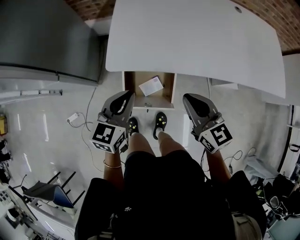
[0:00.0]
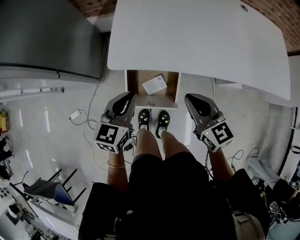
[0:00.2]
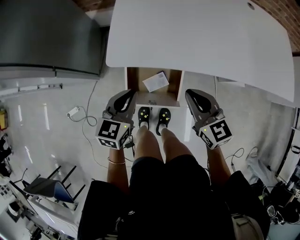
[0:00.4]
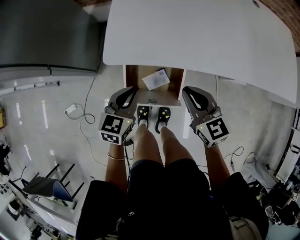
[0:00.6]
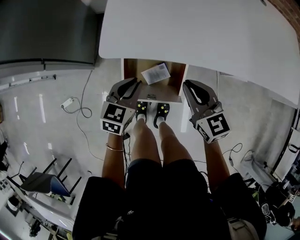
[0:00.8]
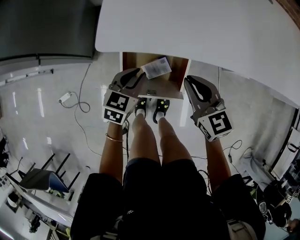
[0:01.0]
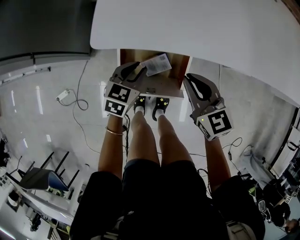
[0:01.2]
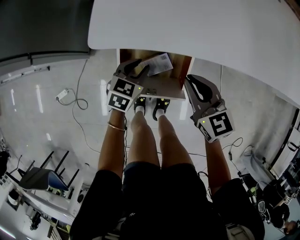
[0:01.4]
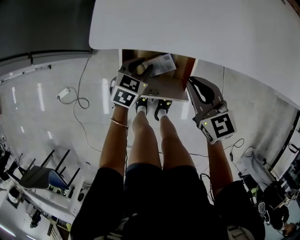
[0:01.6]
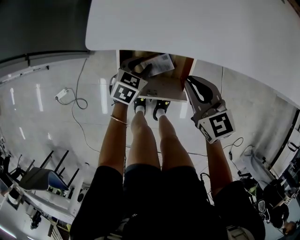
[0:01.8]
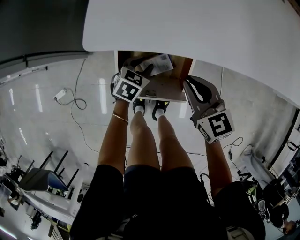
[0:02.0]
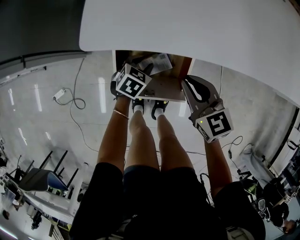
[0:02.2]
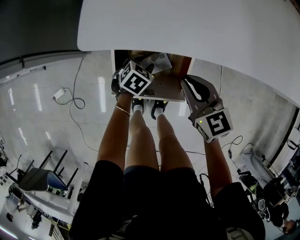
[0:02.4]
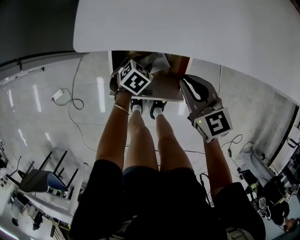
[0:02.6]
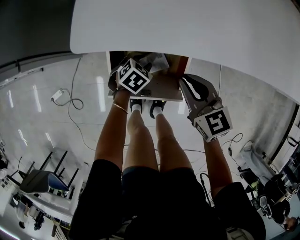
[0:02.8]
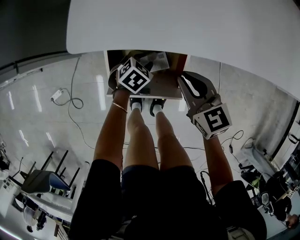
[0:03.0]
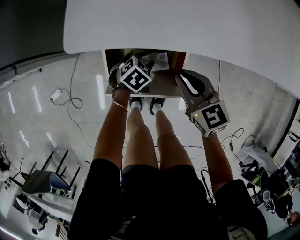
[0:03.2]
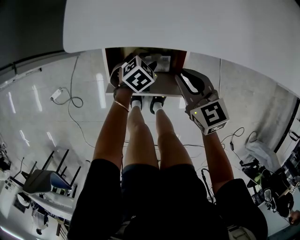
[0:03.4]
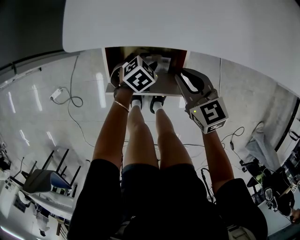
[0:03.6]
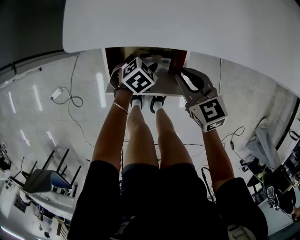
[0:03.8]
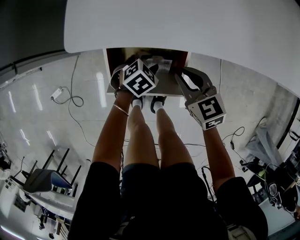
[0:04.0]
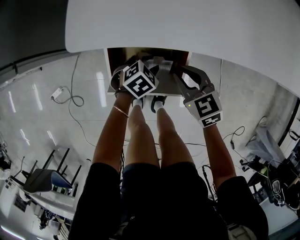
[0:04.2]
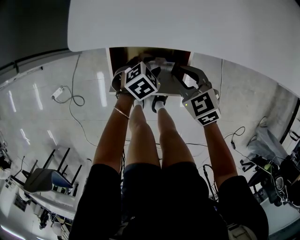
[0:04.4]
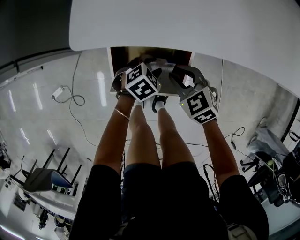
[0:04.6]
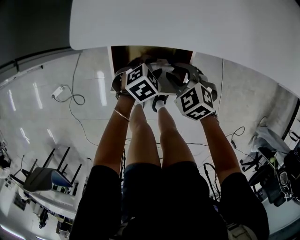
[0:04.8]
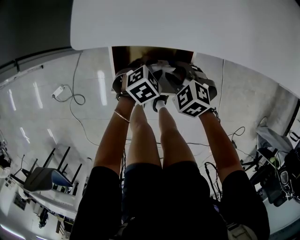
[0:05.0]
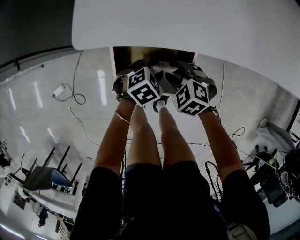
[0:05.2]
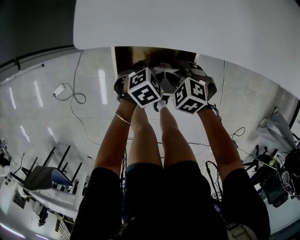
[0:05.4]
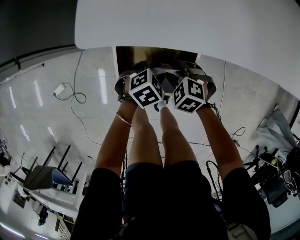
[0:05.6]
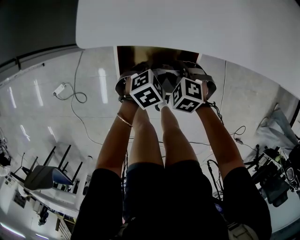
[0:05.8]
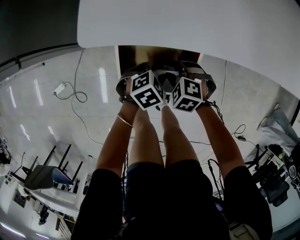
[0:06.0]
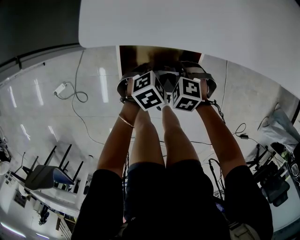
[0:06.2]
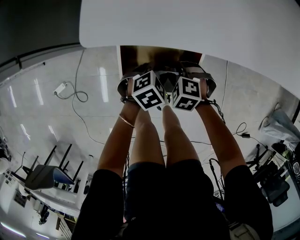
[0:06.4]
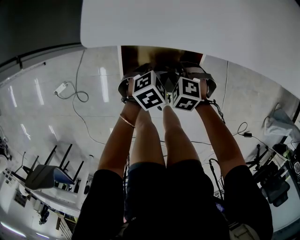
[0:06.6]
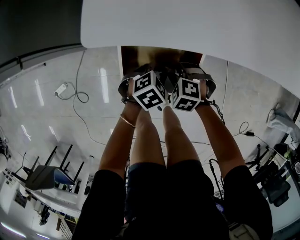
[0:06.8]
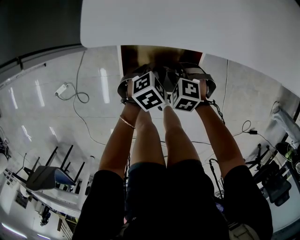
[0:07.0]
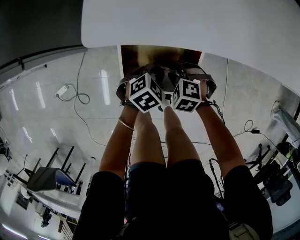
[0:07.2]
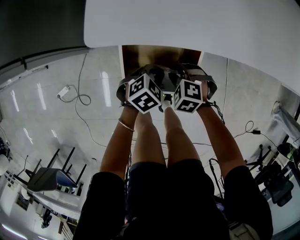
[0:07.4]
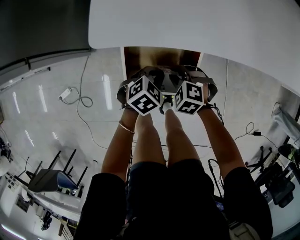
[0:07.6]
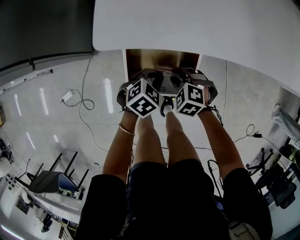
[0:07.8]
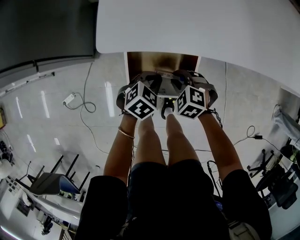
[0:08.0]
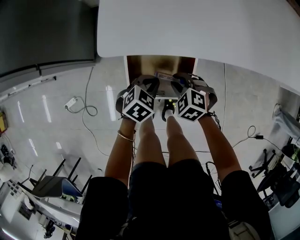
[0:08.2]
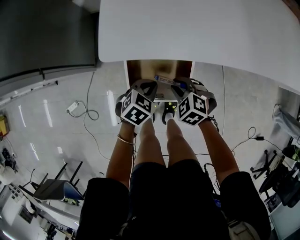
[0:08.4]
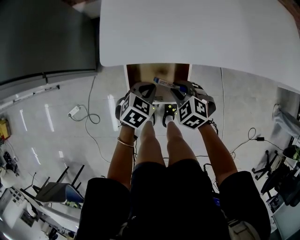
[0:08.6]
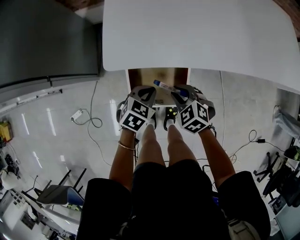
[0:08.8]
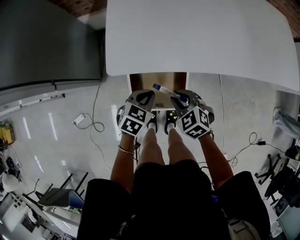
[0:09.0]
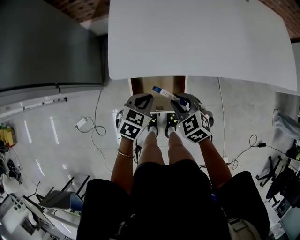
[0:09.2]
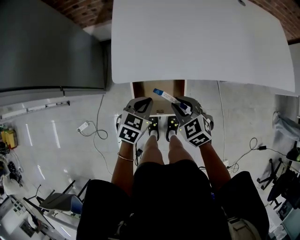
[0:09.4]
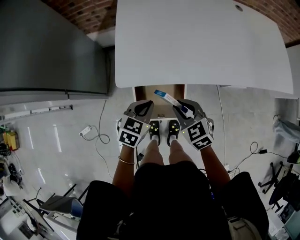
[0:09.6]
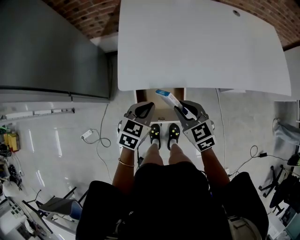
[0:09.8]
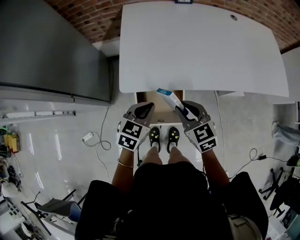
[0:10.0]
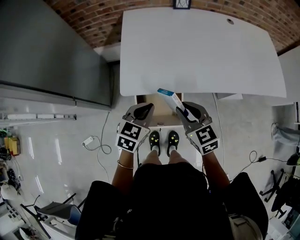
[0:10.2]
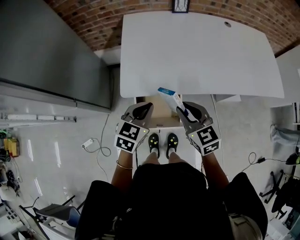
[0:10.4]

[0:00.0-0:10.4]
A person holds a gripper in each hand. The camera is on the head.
0:00.0 to 0:01.4: The left gripper shifts some 30 cm downward, swivels some 20 degrees, and opens its fingers. Meanwhile the right gripper shifts approximately 20 cm downward.
0:01.4 to 0:03.0: The left gripper moves downward and to the right, some 10 cm, and turns by some 30 degrees.
0:03.0 to 0:04.4: The right gripper is displaced downward by some 5 cm, and swivels about 20 degrees.
0:04.4 to 0:06.0: The right gripper heads downward, covering roughly 10 cm, and rotates about 40 degrees.
0:06.0 to 0:07.4: The left gripper closes its fingers.
0:07.4 to 0:09.0: Both grippers travel together upward, approximately 15 cm. The right gripper rotates roughly 30 degrees.
0:09.0 to 0:10.4: Both grippers travel together upward, about 20 cm. The right gripper swivels about 30 degrees.

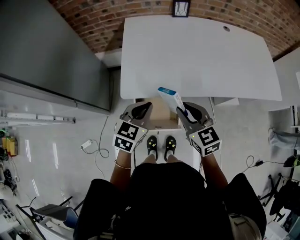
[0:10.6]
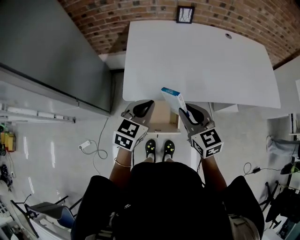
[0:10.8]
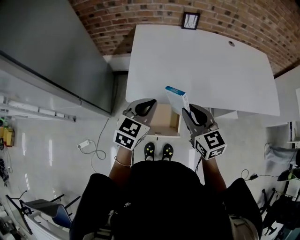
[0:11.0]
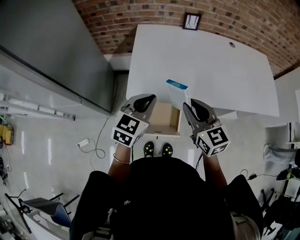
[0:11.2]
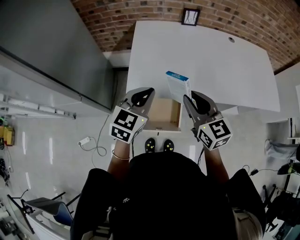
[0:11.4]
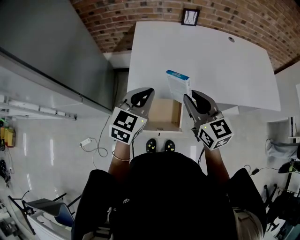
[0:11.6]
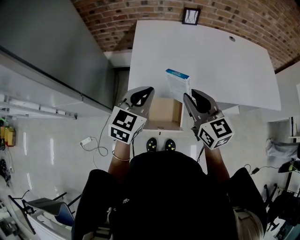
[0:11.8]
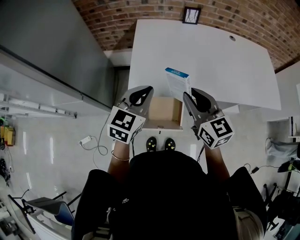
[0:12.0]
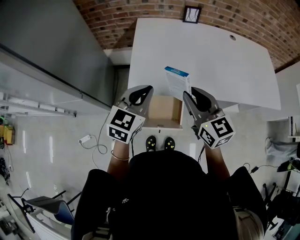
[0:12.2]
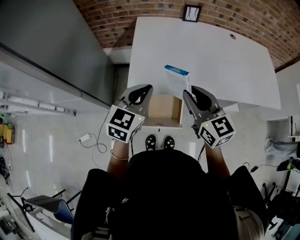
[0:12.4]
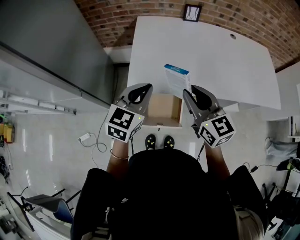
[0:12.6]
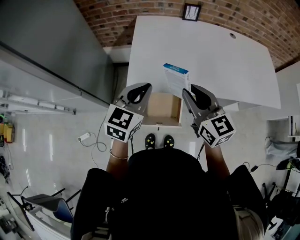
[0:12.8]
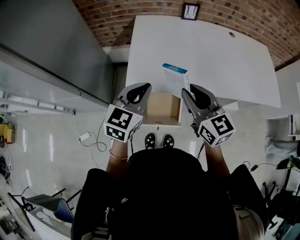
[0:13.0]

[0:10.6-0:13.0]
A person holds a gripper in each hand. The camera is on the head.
0:10.6 to 0:11.8: The grippers both shift upward by about 10 cm.
0:11.8 to 0:13.0: The grippers move only a little.

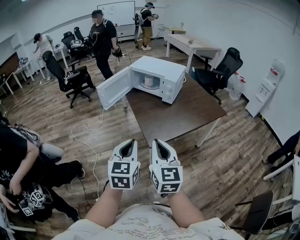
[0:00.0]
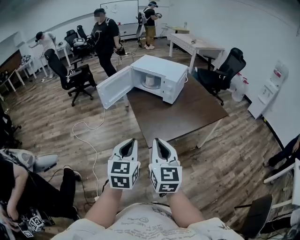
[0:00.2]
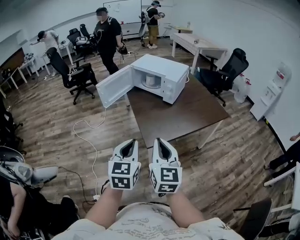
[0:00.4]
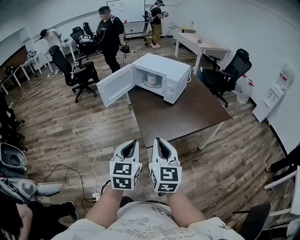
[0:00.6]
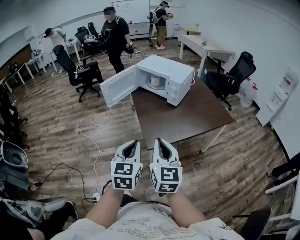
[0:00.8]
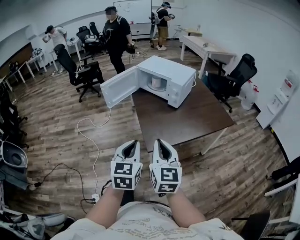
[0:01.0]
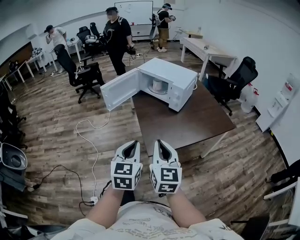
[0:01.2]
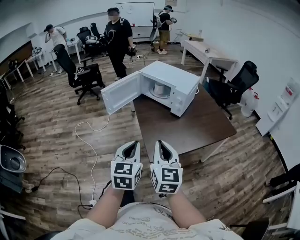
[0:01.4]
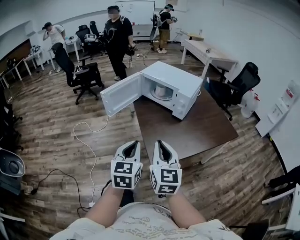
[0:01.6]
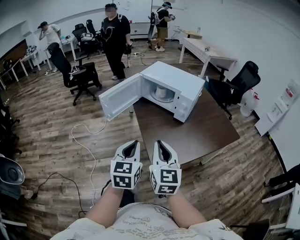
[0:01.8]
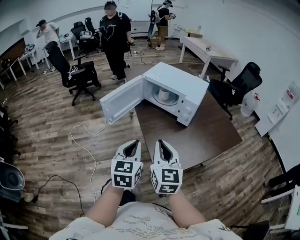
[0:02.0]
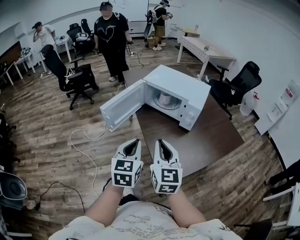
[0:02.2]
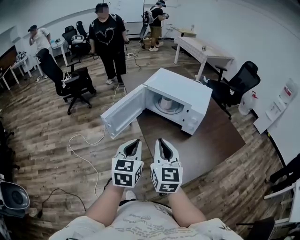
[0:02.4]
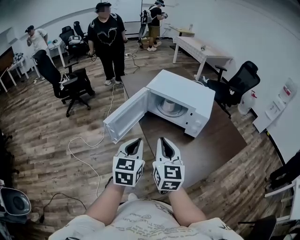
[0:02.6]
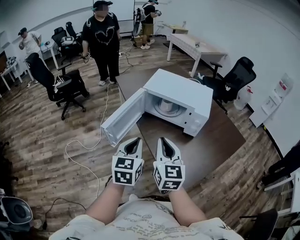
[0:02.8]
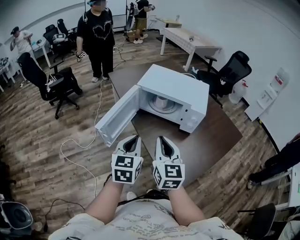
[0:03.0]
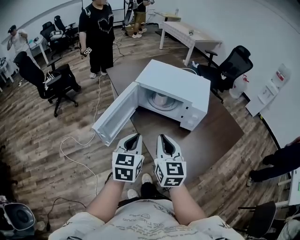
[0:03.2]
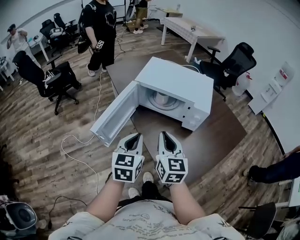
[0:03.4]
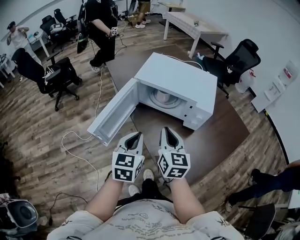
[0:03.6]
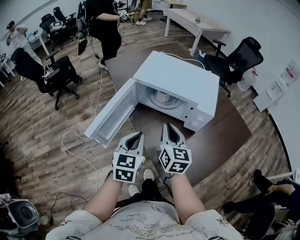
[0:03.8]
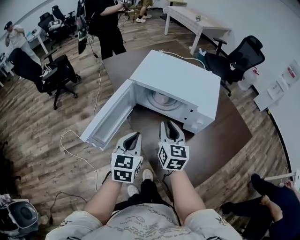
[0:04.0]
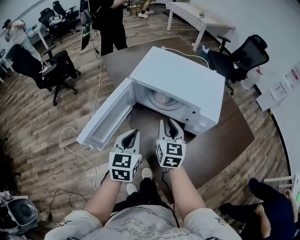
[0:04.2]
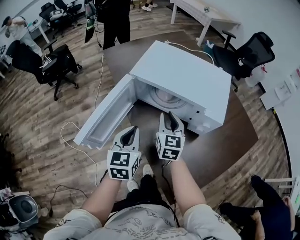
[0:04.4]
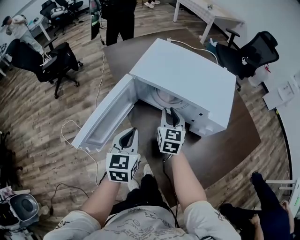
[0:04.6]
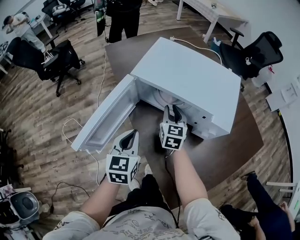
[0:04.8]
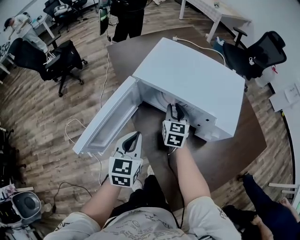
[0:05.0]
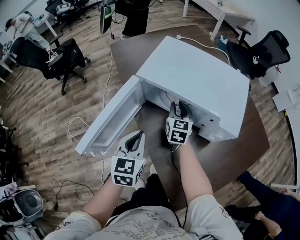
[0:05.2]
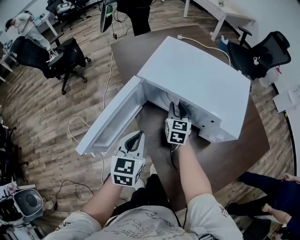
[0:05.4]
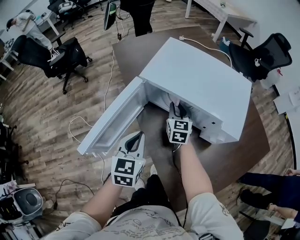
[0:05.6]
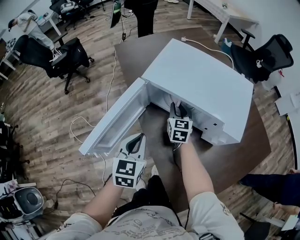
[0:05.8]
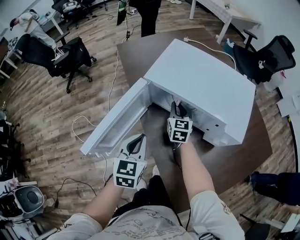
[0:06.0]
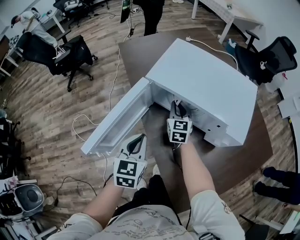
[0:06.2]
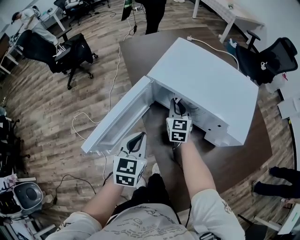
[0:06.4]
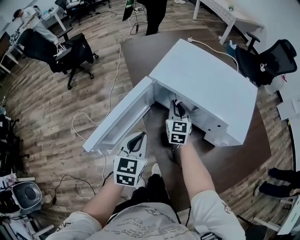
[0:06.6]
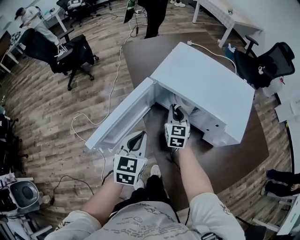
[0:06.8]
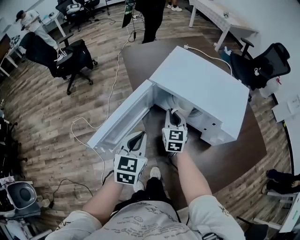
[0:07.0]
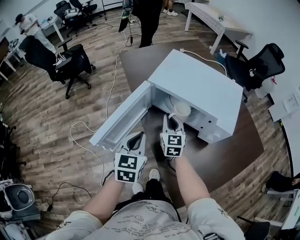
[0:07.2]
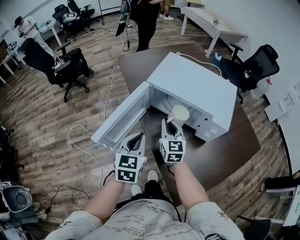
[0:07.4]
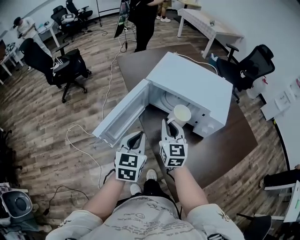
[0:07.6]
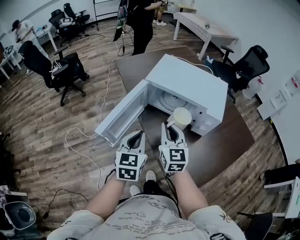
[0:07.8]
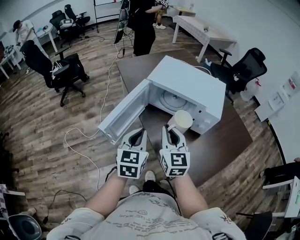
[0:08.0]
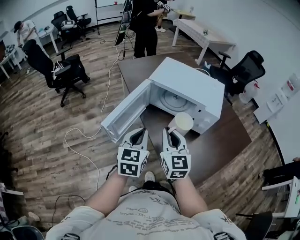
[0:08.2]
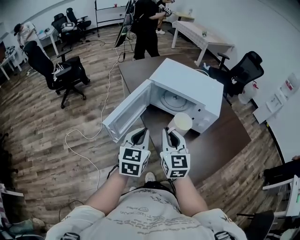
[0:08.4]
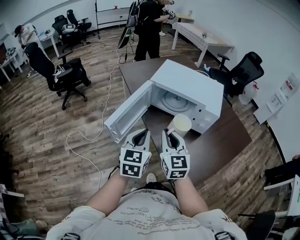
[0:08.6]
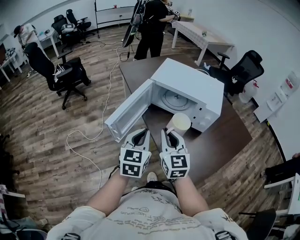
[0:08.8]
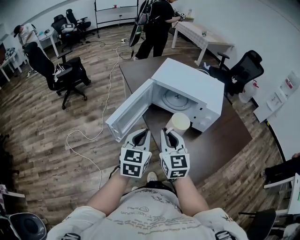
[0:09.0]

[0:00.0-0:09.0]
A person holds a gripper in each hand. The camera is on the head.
0:00.0 to 0:01.6: Both grippers move forward, roughly 15 cm.
0:01.6 to 0:03.0: Both grippers move forward and to the left, about 30 cm.
0:03.0 to 0:04.4: The right gripper travels forward and downward by roughly 30 cm, while the left gripper goes approximately 20 cm forward and downward.
0:04.4 to 0:06.0: The right gripper goes about 15 cm forward and downward.
0:06.0 to 0:07.6: The left gripper is displaced backward and upward by roughly 10 cm; the right gripper travels backward and upward by roughly 25 cm.
0:07.6 to 0:09.0: The right gripper is displaced backward by approximately 15 cm. Meanwhile the left gripper goes about 5 cm backward.

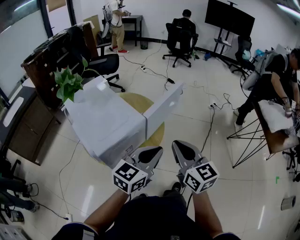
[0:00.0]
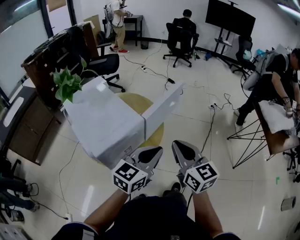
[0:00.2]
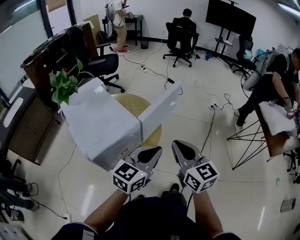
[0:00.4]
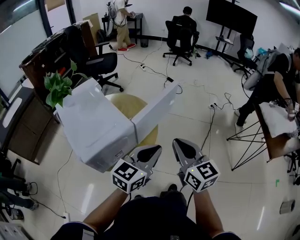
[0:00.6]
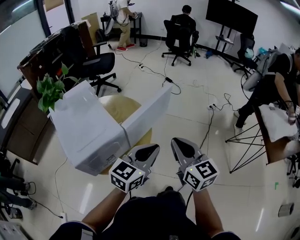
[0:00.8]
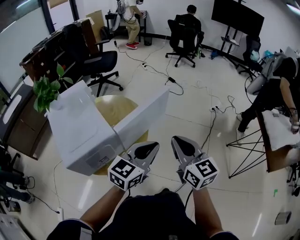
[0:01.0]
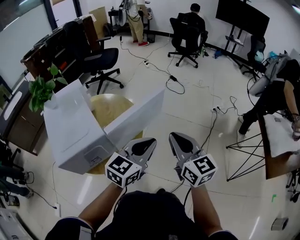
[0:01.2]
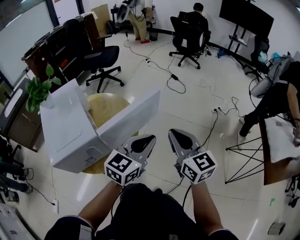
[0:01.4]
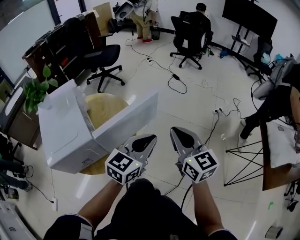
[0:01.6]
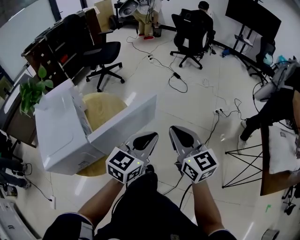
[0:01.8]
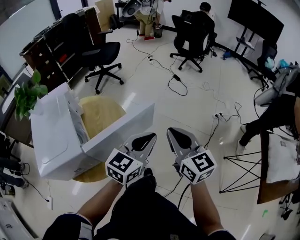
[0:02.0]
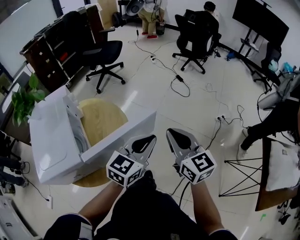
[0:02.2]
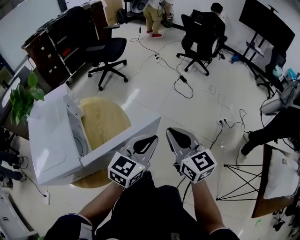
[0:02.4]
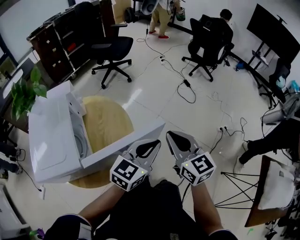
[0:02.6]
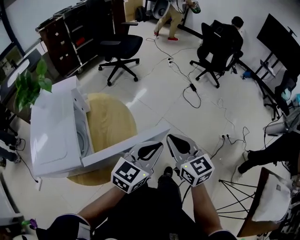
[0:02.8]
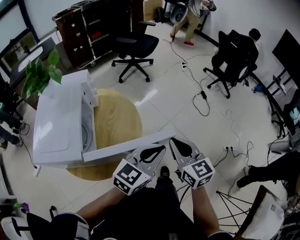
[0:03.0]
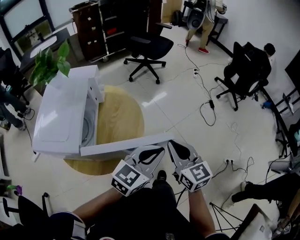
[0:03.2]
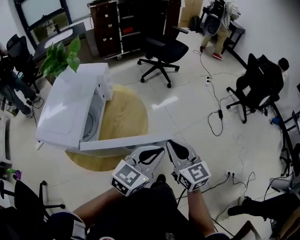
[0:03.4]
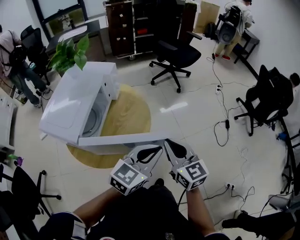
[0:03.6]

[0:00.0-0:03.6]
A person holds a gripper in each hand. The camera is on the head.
0:00.0 to 0:01.8: Both grippers travel together forward and to the right, approximately 30 cm.
0:01.8 to 0:03.6: The left gripper ends up approximately 20 cm from where it was, and turns by approximately 40 degrees; the right gripper ends up about 25 cm from where it was, and swivels about 50 degrees.
